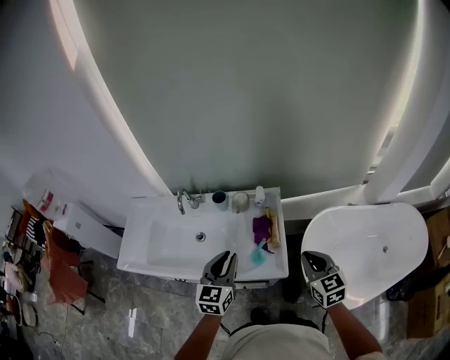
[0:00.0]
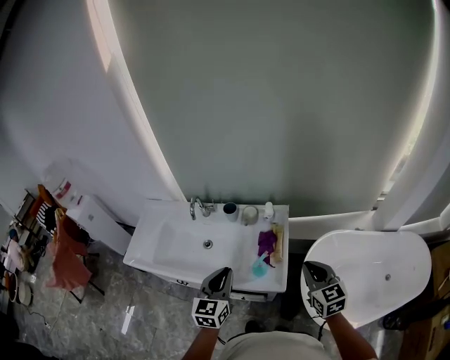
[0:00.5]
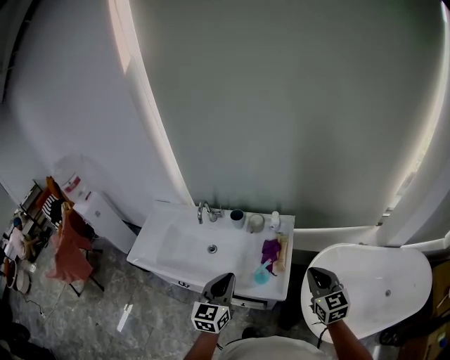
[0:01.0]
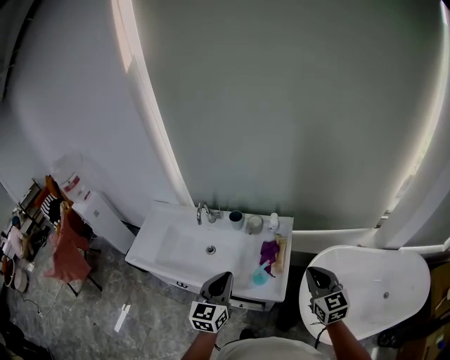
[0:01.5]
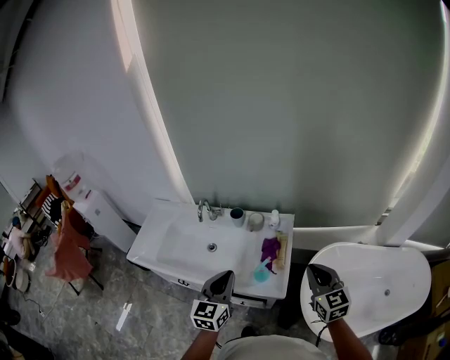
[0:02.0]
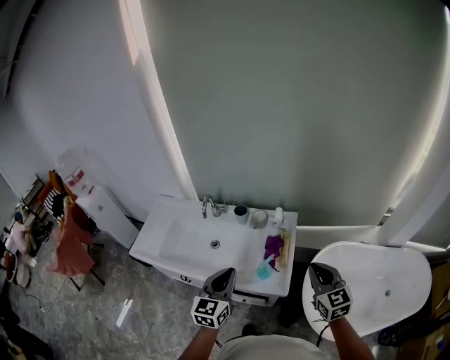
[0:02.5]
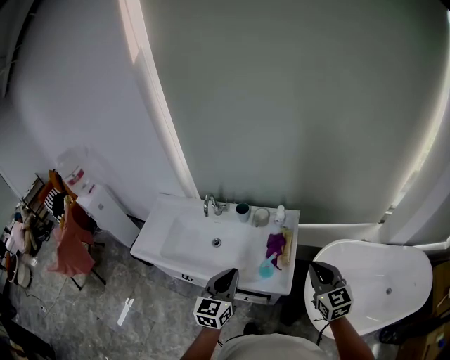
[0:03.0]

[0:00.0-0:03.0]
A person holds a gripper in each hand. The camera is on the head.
0:00.0 to 0:01.5: The right gripper moves upward, approximately 5 cm. The left gripper shifts by about 5 cm.
0:01.5 to 0:03.0: The grippers move only a little.

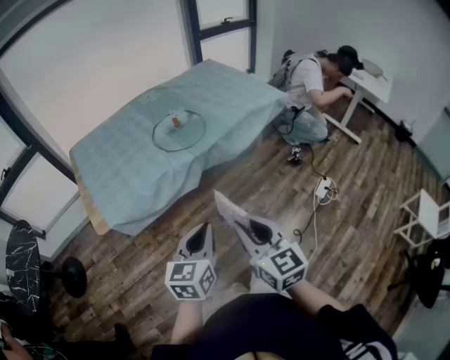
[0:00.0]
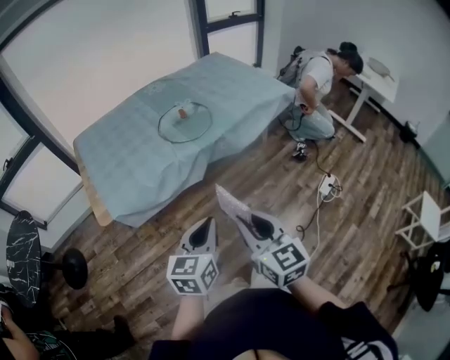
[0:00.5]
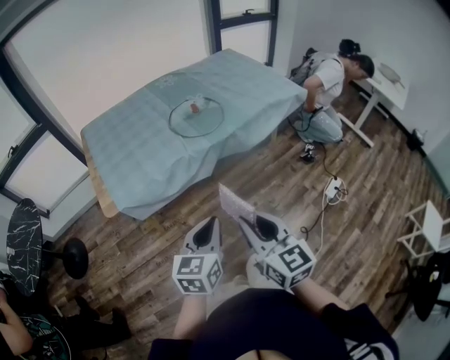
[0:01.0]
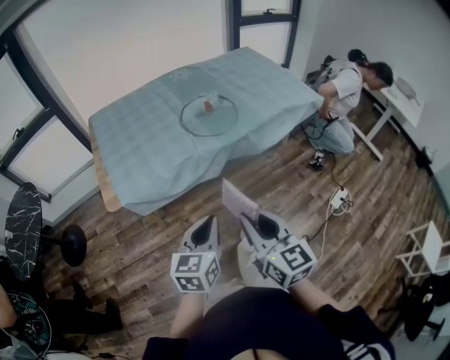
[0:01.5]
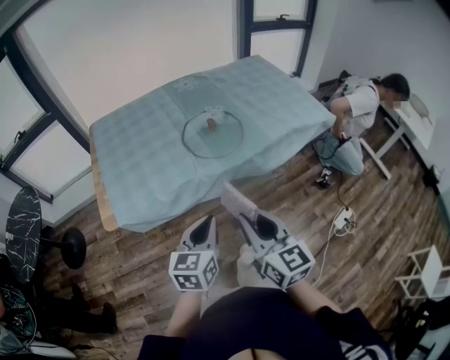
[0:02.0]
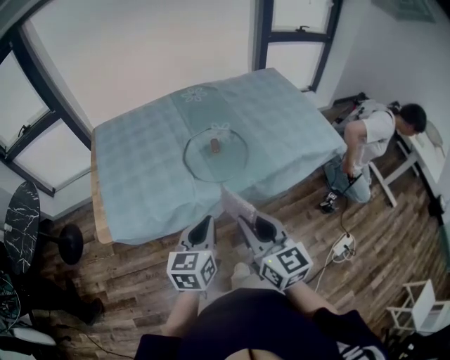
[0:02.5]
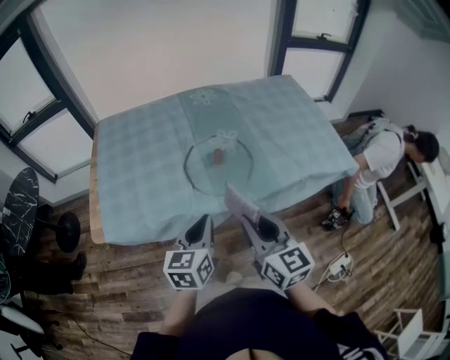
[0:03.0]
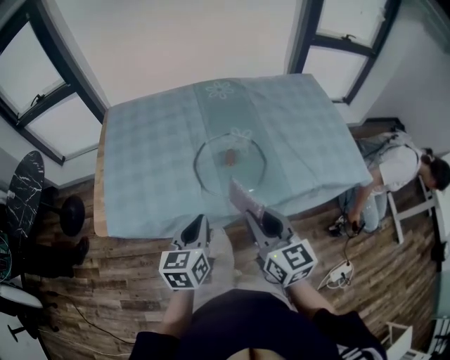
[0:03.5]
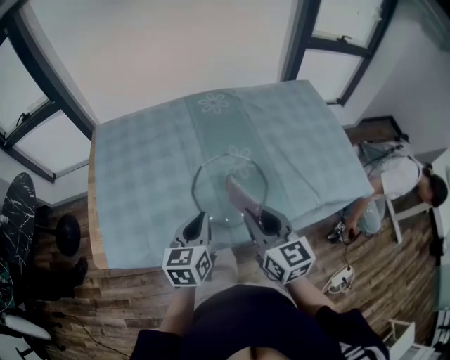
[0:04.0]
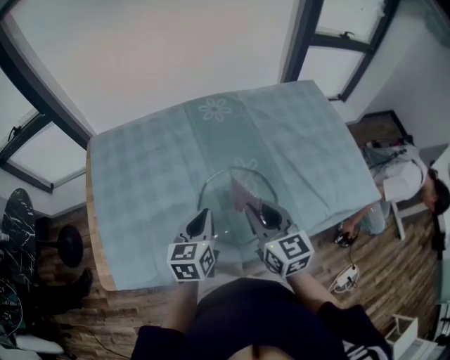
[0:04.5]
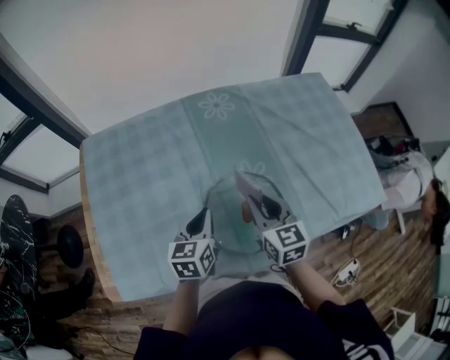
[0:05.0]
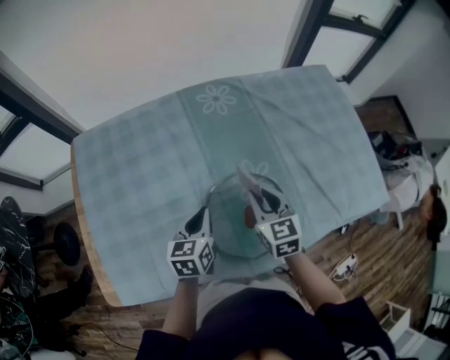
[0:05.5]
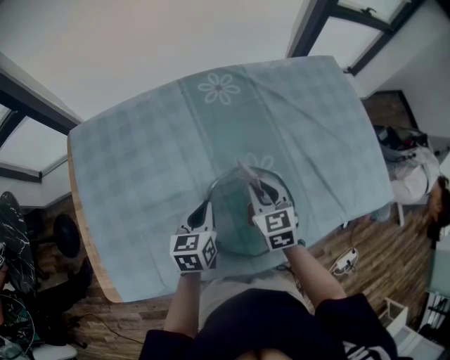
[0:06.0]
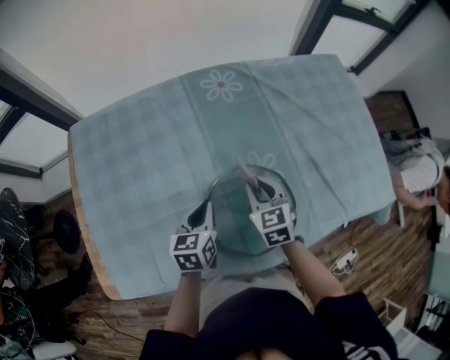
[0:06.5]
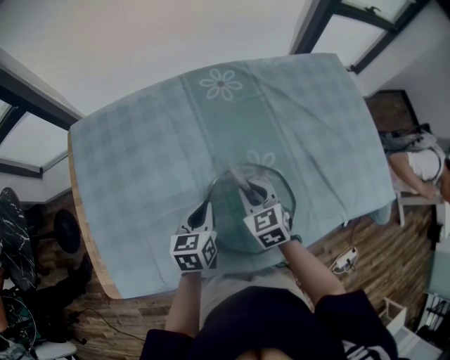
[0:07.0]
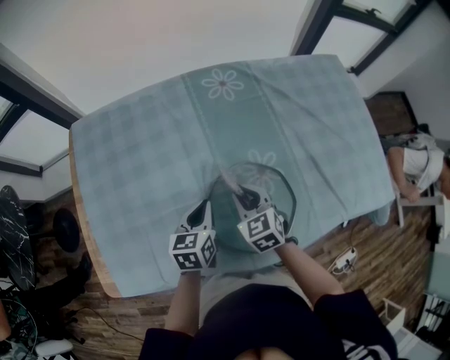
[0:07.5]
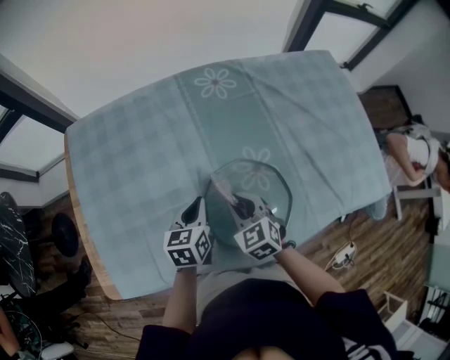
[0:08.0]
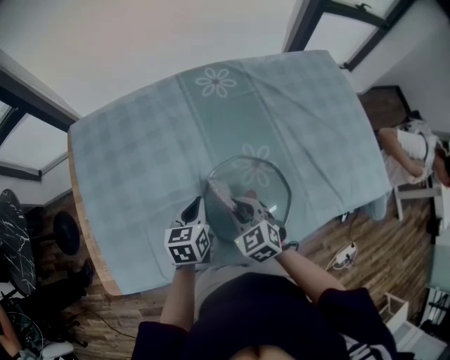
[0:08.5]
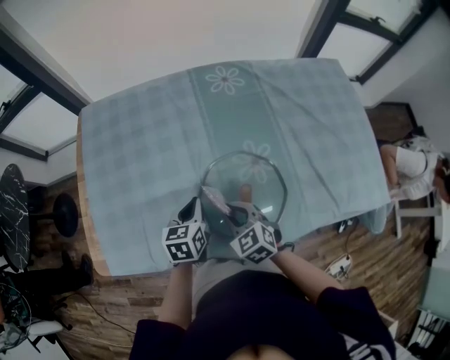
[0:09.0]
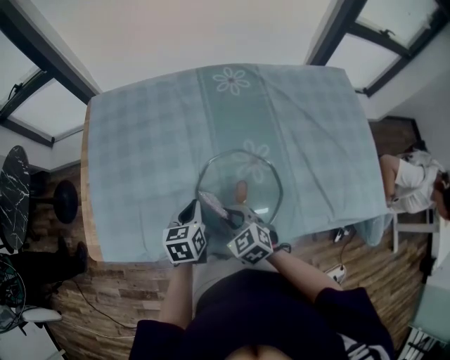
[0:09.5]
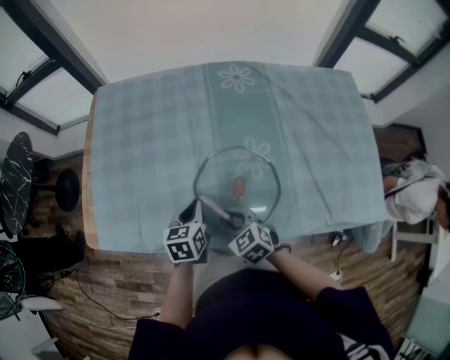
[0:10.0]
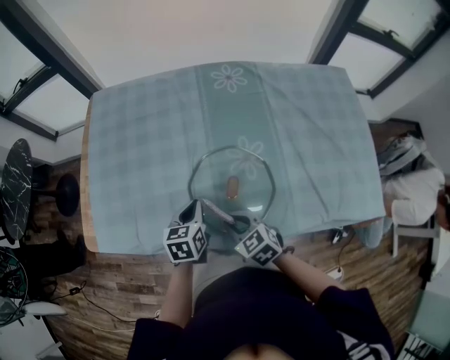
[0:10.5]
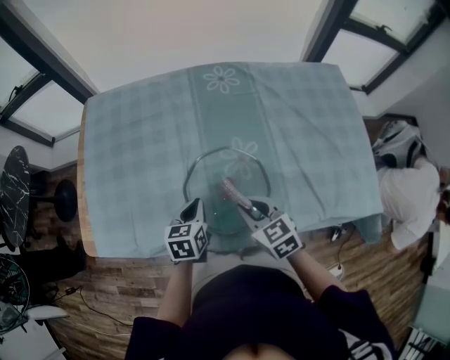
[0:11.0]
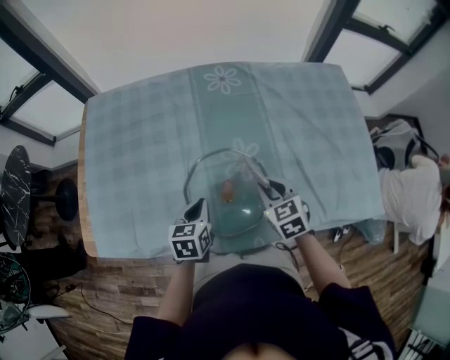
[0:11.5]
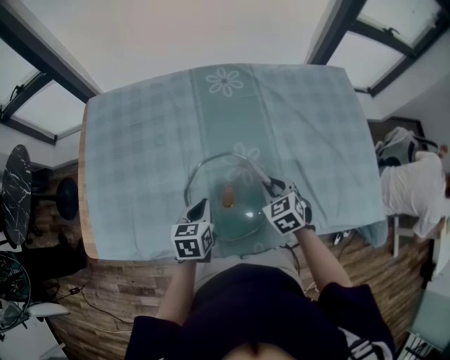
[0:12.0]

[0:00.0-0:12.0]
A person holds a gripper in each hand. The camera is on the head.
0:00.0 to 0:02.0: The two grippers go some 15 cm forward.
0:02.0 to 0:04.0: Both grippers travel together forward, approximately 35 cm.
0:04.0 to 0:06.0: Both grippers travel together forward and downward, some 25 cm. The right gripper rotates roughly 30 degrees.
0:06.0 to 0:08.0: The right gripper heads to the left and backward, covering approximately 10 cm.
0:08.0 to 0:10.0: Both grippers move backward, roughly 10 cm. The right gripper changes its angle by about 20 degrees.
0:10.0 to 0:12.0: The left gripper travels to the right by some 5 cm. The right gripper moves to the right and forward, roughly 20 cm, and turns by roughly 20 degrees.

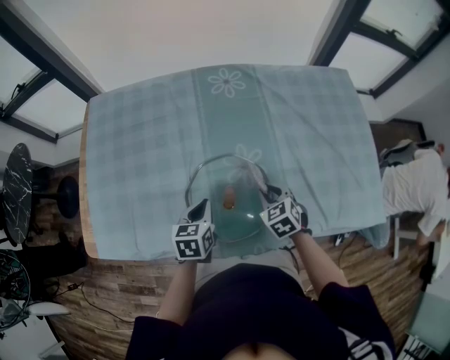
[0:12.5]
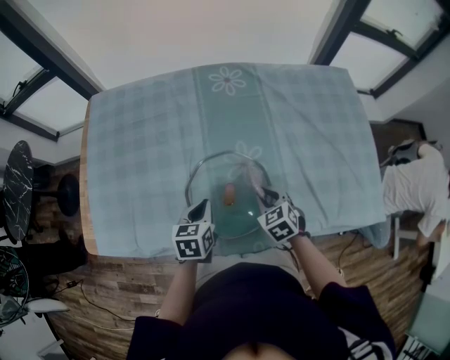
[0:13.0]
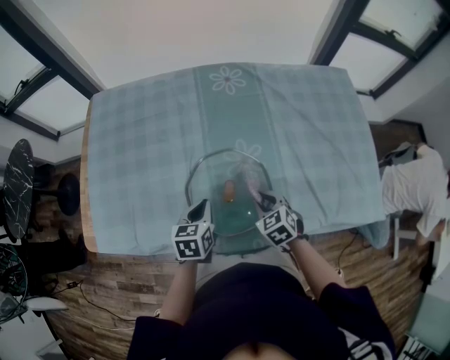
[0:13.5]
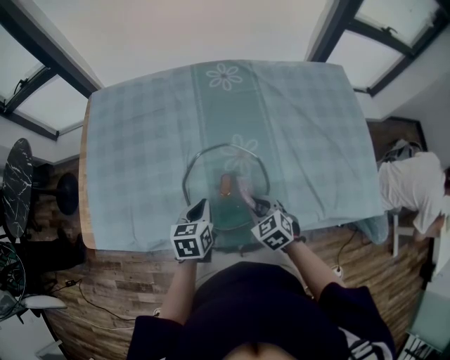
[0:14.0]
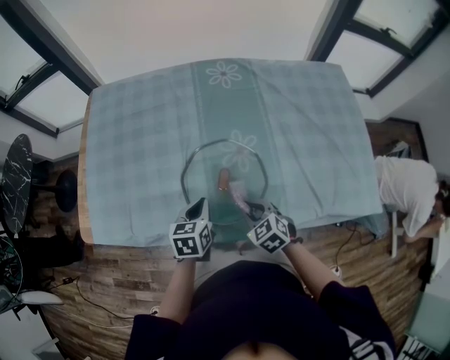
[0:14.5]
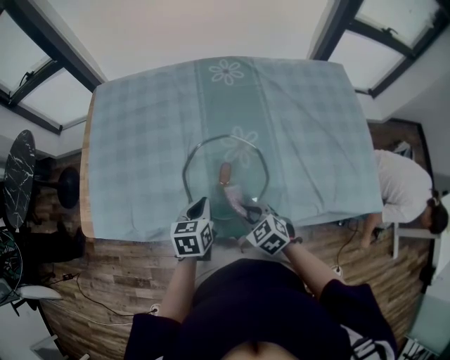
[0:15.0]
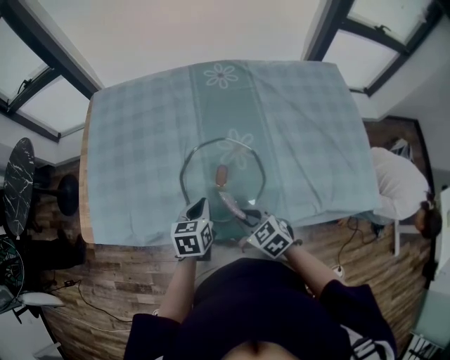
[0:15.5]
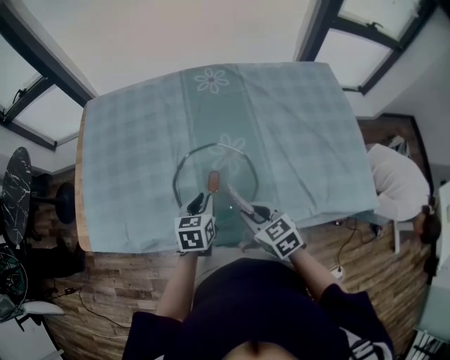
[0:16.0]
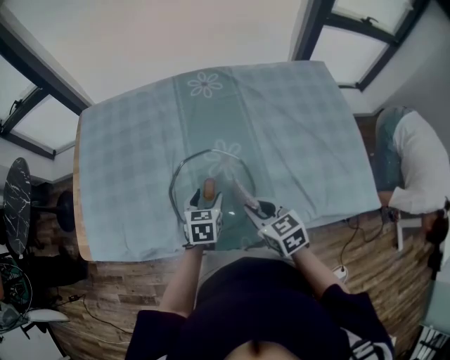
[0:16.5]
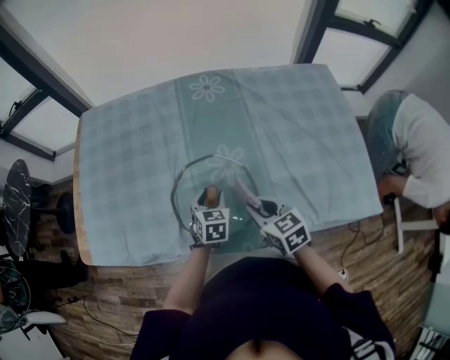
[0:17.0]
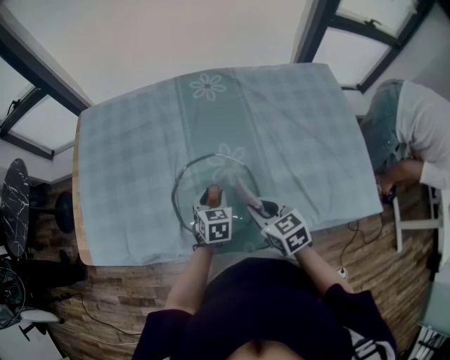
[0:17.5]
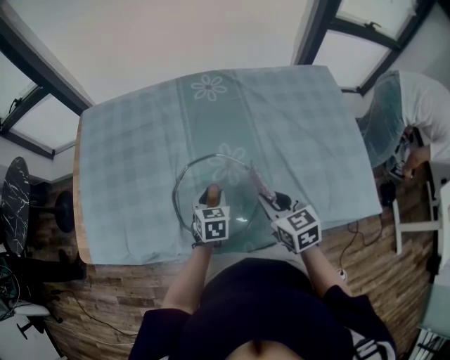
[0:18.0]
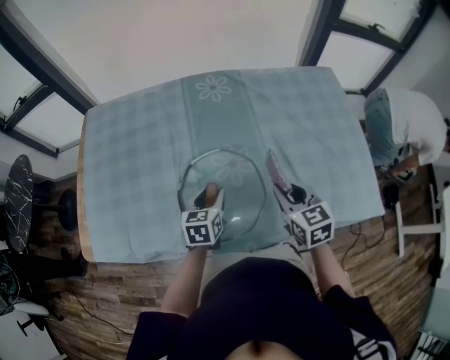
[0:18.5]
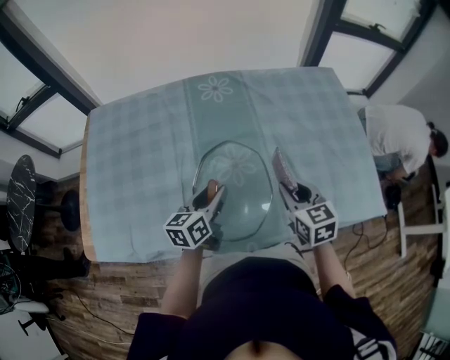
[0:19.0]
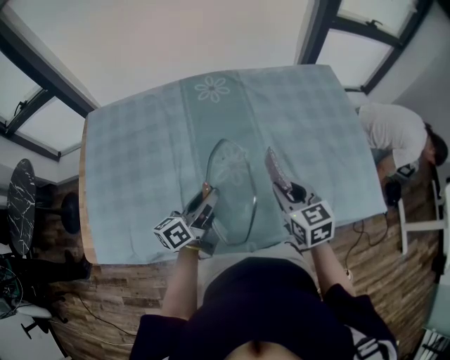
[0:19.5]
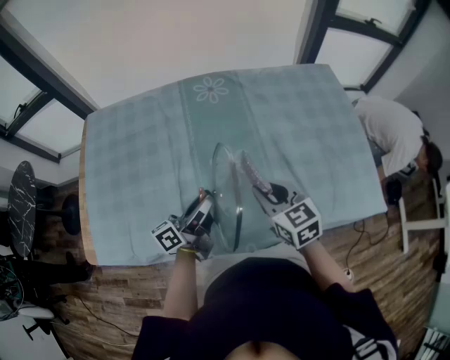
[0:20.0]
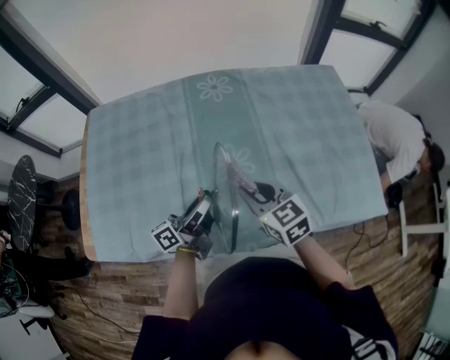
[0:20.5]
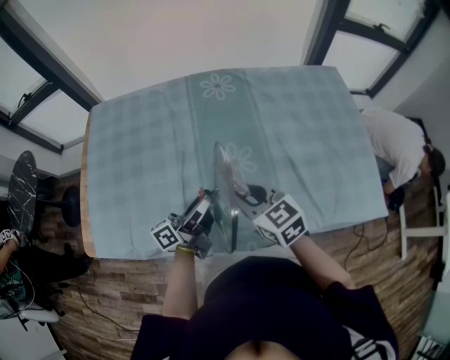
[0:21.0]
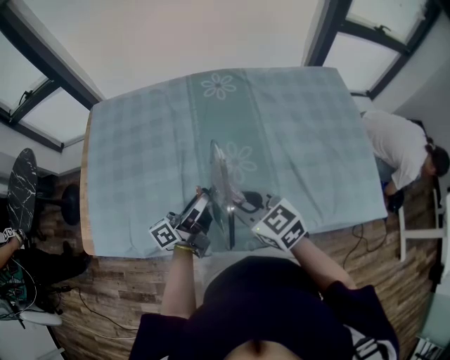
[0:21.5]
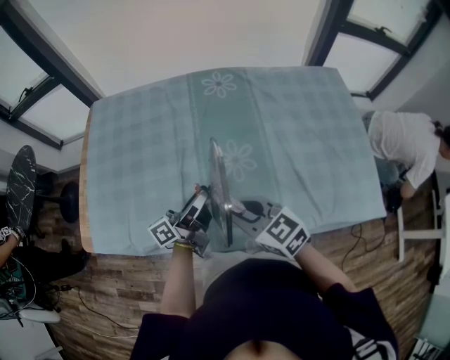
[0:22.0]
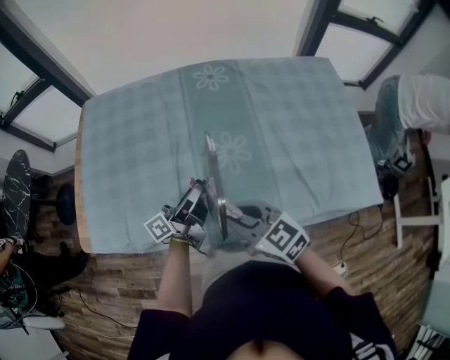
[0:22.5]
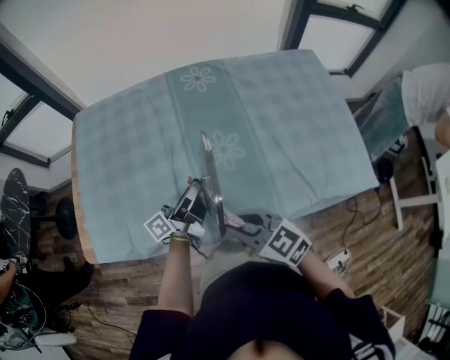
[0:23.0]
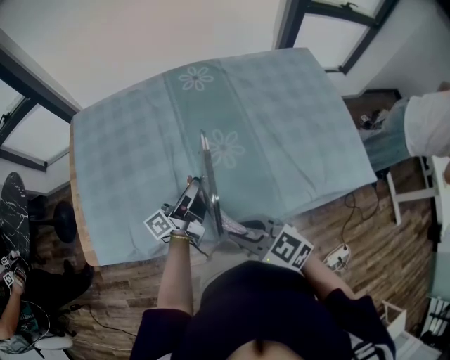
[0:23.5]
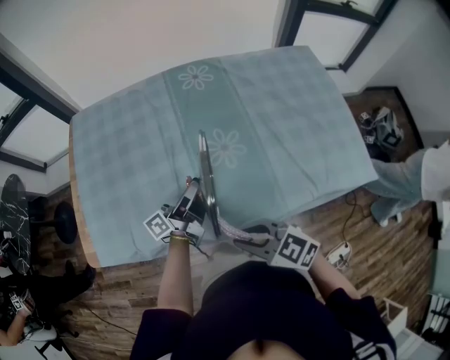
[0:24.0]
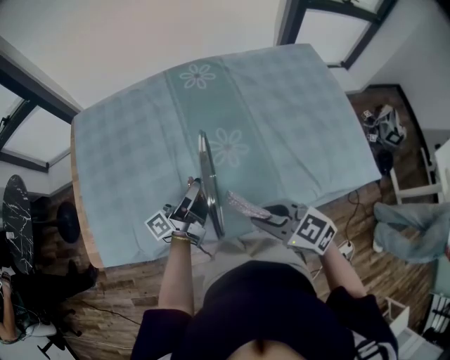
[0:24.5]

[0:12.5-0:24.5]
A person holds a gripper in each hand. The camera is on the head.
0:12.5 to 0:14.5: The right gripper shifts roughly 15 cm backward and to the left; the left gripper heads backward, covering some 5 cm.
0:14.5 to 0:16.5: The right gripper is displaced upward and to the right by some 10 cm, and rotates some 30 degrees. The left gripper shifts approximately 10 cm to the right, and opens its fingers.
0:16.5 to 0:18.5: The left gripper closes its fingers; the right gripper goes about 10 cm to the right.
0:18.5 to 0:20.5: The left gripper is displaced upward by some 5 cm, and tips its fingers upward by roughly 50 degrees. Meanwhile the right gripper goes about 10 cm to the left.
0:20.5 to 0:22.5: The right gripper shifts about 10 cm backward and to the left.
